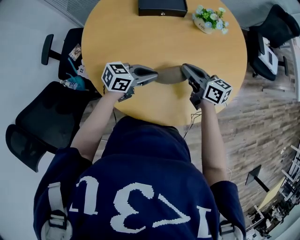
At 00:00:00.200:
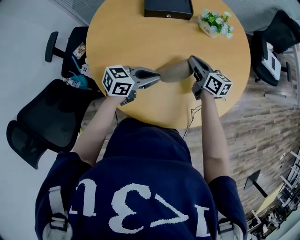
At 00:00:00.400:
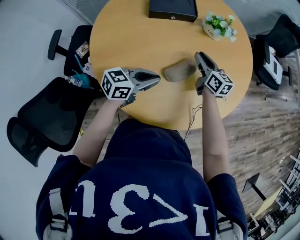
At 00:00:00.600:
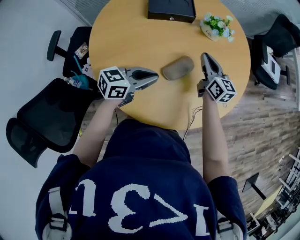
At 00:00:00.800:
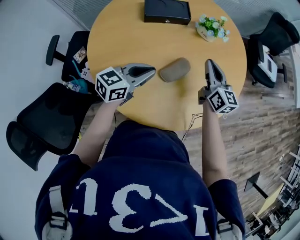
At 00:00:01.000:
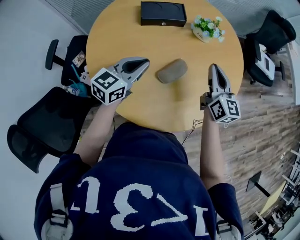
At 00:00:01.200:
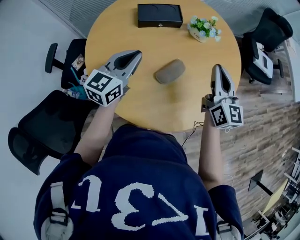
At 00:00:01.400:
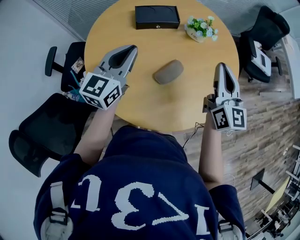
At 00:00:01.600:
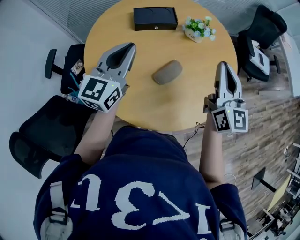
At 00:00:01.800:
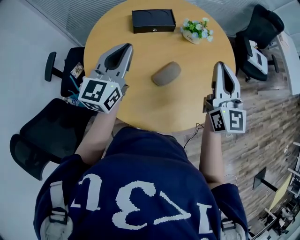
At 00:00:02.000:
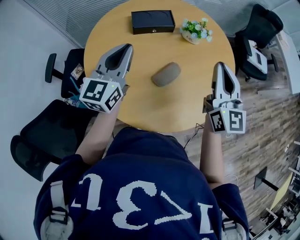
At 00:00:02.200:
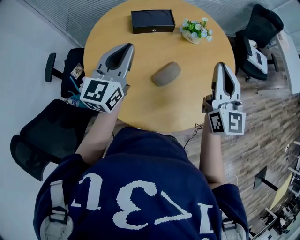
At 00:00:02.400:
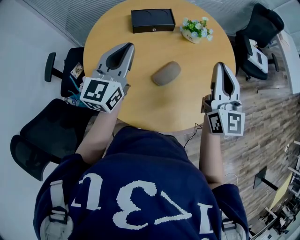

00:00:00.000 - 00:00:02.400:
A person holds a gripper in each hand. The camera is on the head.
00:00:00.000 - 00:00:01.200: Both grippers move upward, about 15 cm. The left gripper turns by some 40 degrees. Meanwhile the right gripper swivels about 50 degrees.
00:00:01.200 - 00:00:02.400: The two grippers go roughly 10 cm upward.

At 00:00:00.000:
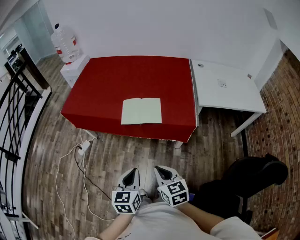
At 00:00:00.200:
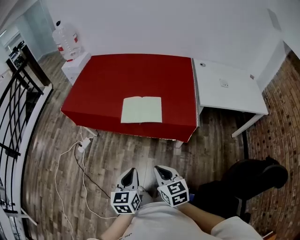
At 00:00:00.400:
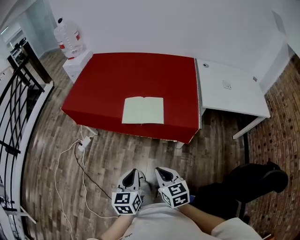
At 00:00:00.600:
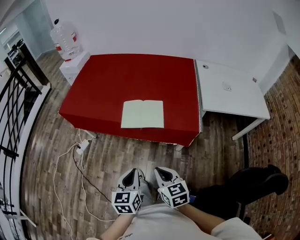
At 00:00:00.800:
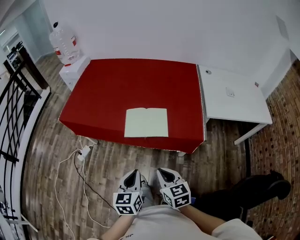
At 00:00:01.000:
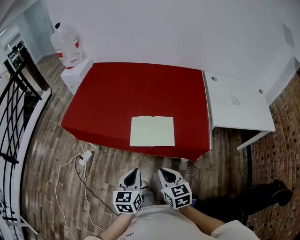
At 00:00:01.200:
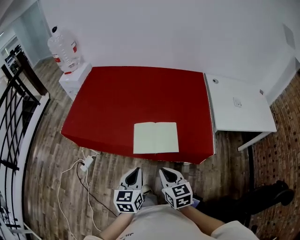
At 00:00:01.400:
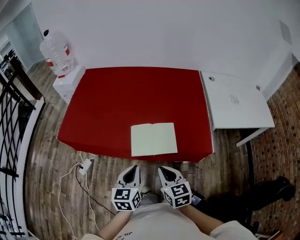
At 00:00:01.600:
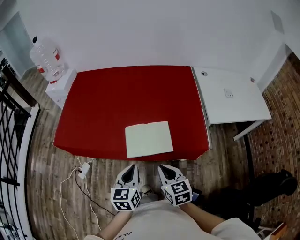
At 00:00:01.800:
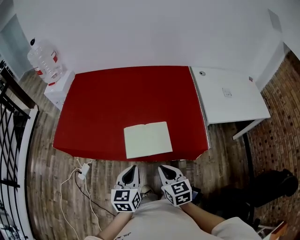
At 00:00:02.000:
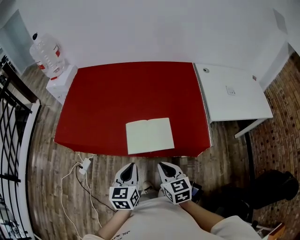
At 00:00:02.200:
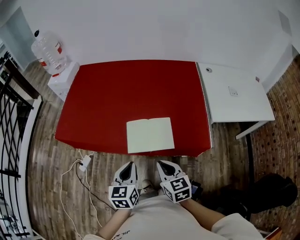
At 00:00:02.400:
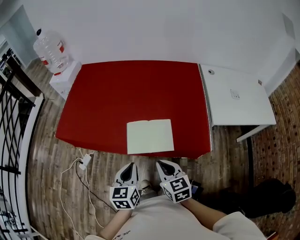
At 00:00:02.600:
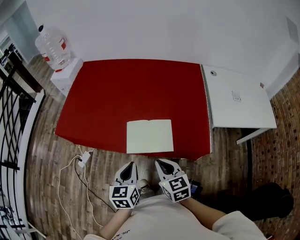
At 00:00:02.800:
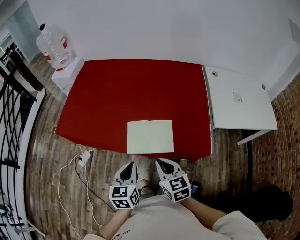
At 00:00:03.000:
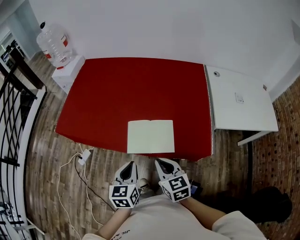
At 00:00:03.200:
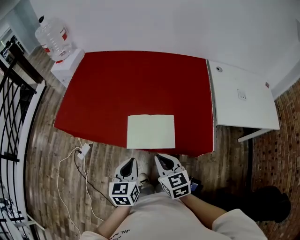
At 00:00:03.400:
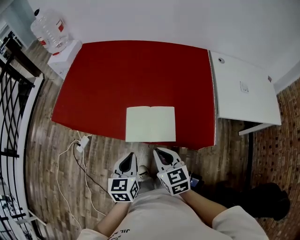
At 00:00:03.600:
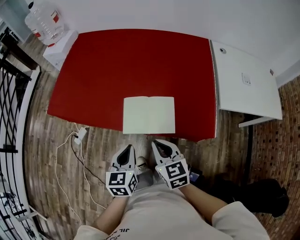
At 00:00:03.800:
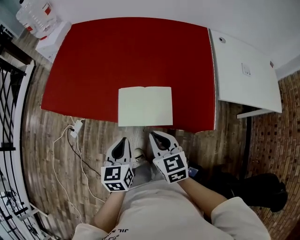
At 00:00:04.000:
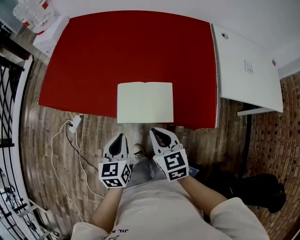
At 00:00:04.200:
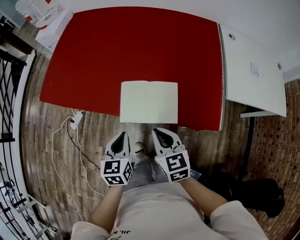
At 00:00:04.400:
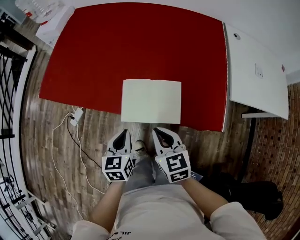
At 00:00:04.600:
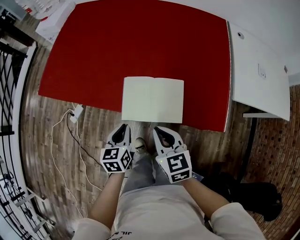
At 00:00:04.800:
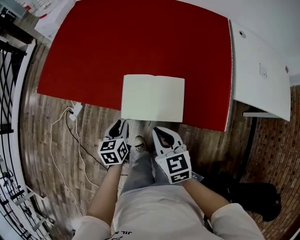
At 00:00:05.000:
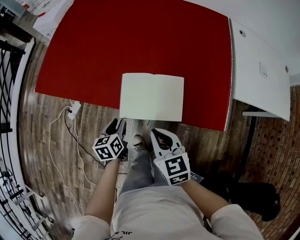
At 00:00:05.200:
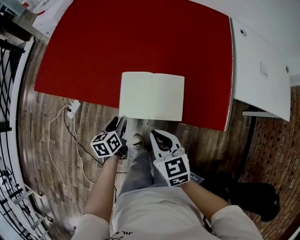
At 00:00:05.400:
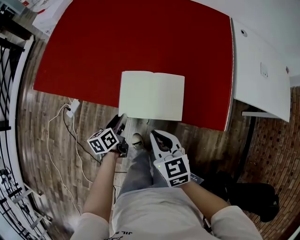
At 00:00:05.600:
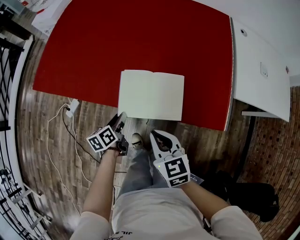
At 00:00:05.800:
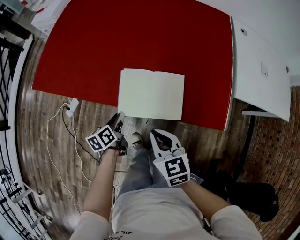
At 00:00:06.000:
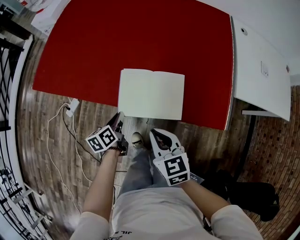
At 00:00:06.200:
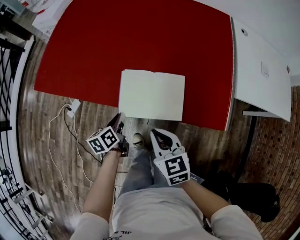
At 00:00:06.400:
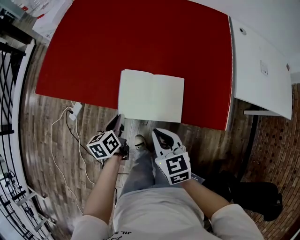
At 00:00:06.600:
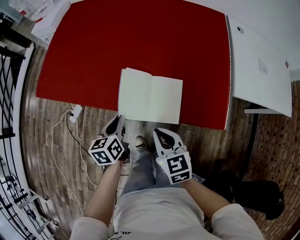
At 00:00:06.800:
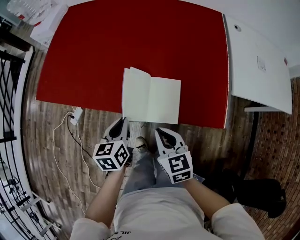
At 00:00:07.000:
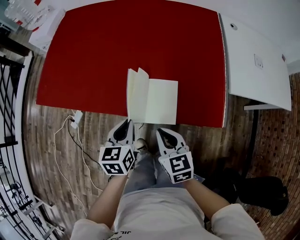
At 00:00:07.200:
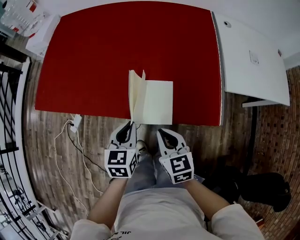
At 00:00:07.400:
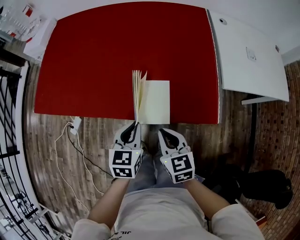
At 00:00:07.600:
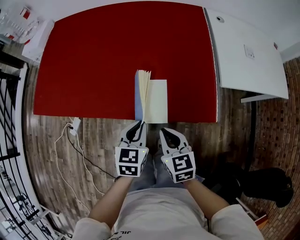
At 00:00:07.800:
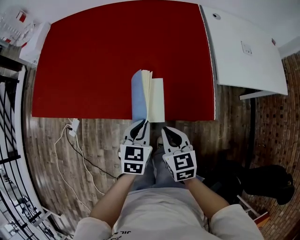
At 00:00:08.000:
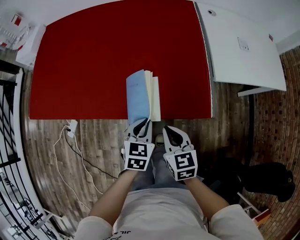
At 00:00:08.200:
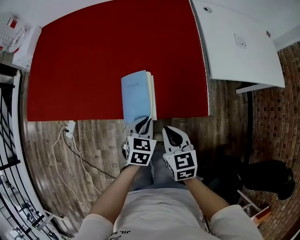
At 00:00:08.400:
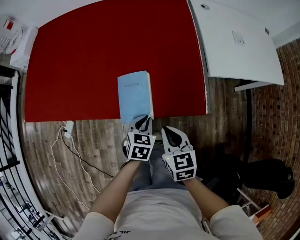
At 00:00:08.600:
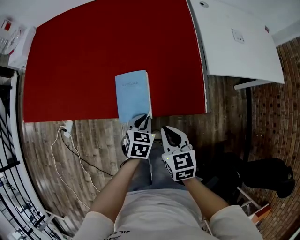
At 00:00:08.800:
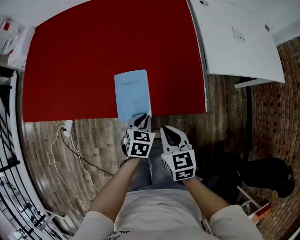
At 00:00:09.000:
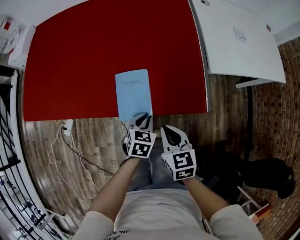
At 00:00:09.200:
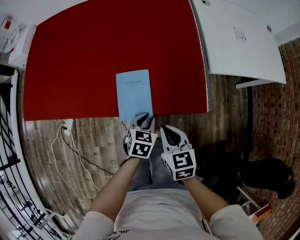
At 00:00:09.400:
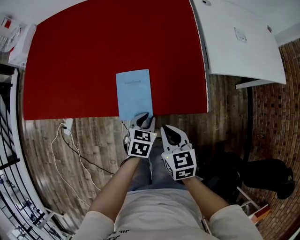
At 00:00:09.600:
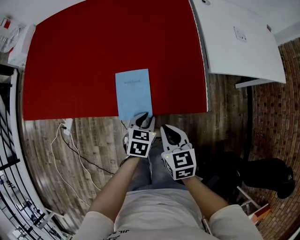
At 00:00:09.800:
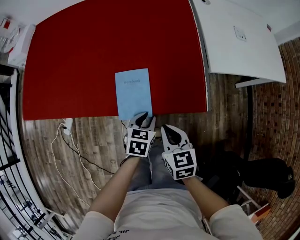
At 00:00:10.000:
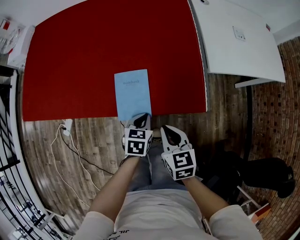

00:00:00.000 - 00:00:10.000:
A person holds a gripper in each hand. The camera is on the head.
00:00:00.000 - 00:00:01.400: The grippers both shift forward by some 25 cm.
00:00:01.400 - 00:00:02.800: The right gripper shifts by approximately 5 cm.
00:00:02.800 - 00:00:04.200: The two grippers go some 10 cm downward.
00:00:04.200 - 00:00:05.800: The left gripper moves downward and forward, about 15 cm, and turns by some 40 degrees.
00:00:05.800 - 00:00:07.200: The left gripper shifts approximately 20 cm upward and to the right, and rotates around the line of its fingers by approximately 40 degrees, clockwise from behind. The right gripper travels to the right by about 5 cm.
00:00:07.200 - 00:00:08.600: The right gripper moves to the right, approximately 10 cm. Meanwhile the left gripper heads to the right and downward, covering about 20 cm, and changes its angle by about 20 degrees.
00:00:08.600 - 00:00:10.000: There are only small adjustments of the grippers.

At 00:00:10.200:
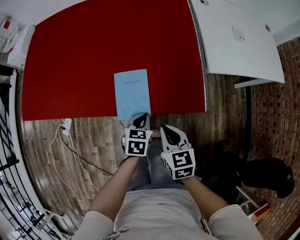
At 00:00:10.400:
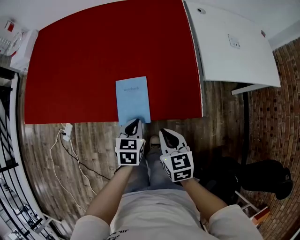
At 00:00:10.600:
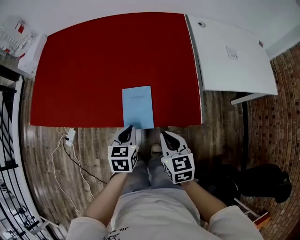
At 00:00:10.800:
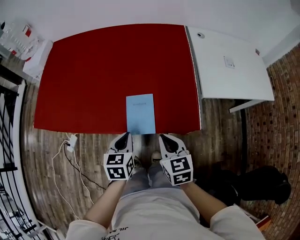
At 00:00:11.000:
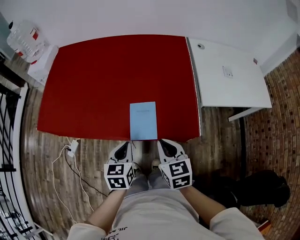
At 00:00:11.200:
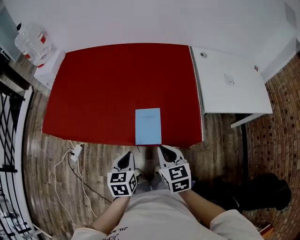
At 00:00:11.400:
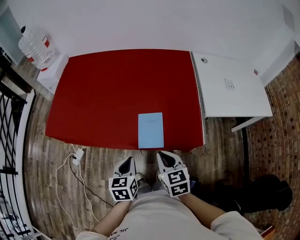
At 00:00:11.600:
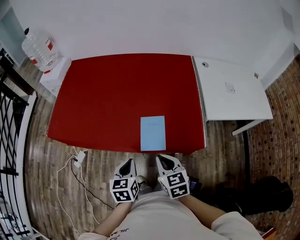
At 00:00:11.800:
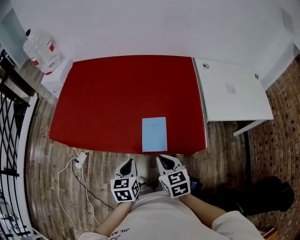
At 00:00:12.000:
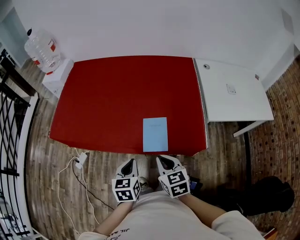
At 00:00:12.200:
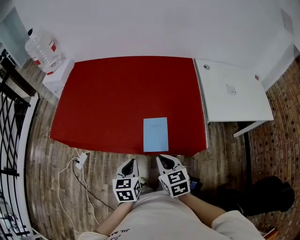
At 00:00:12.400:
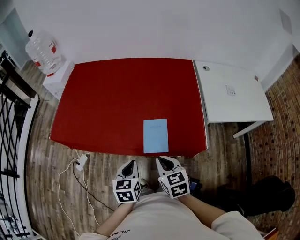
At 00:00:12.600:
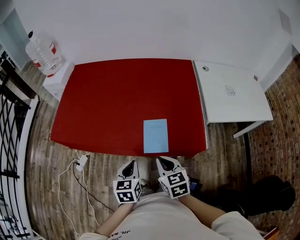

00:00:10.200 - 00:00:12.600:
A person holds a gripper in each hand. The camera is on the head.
00:00:10.200 - 00:00:11.400: The left gripper is displaced upward and to the left by approximately 25 cm, and turns by some 20 degrees. The right gripper goes roughly 15 cm upward and to the left.
00:00:11.400 - 00:00:12.600: The grippers move only a little.

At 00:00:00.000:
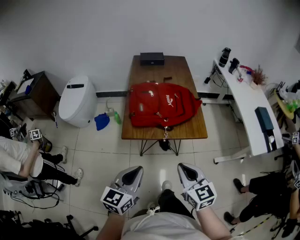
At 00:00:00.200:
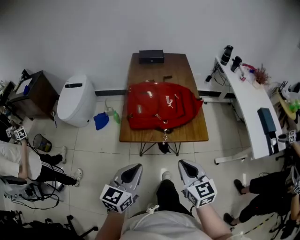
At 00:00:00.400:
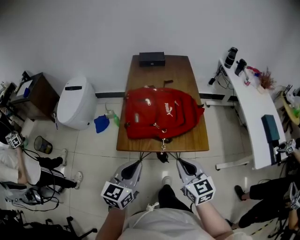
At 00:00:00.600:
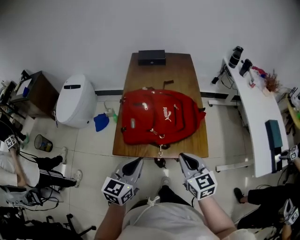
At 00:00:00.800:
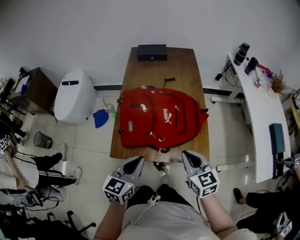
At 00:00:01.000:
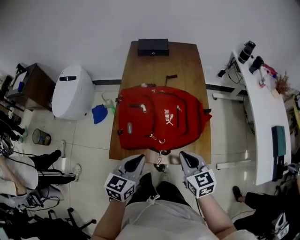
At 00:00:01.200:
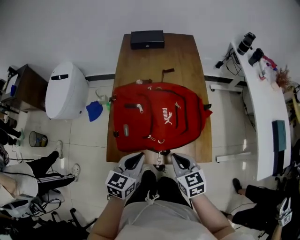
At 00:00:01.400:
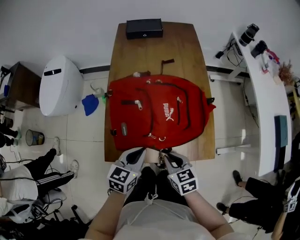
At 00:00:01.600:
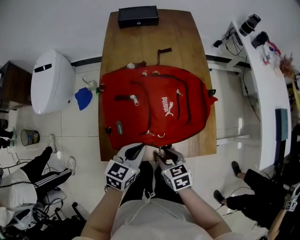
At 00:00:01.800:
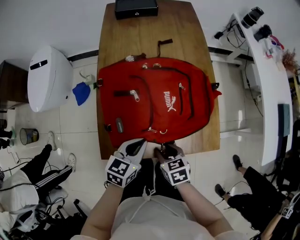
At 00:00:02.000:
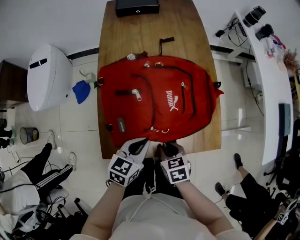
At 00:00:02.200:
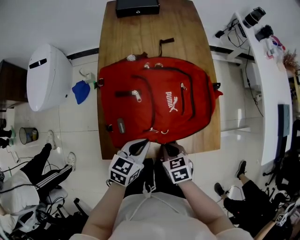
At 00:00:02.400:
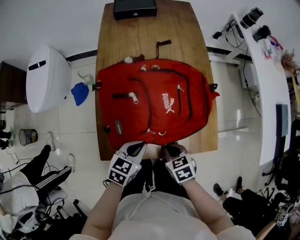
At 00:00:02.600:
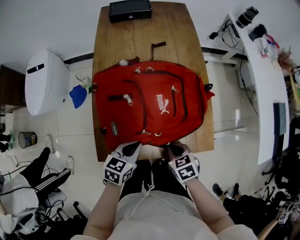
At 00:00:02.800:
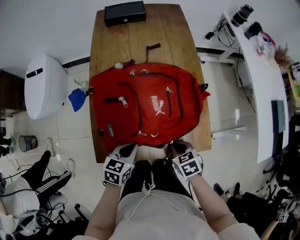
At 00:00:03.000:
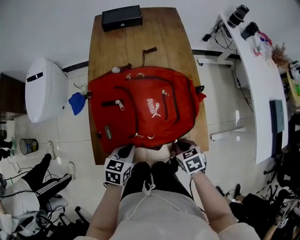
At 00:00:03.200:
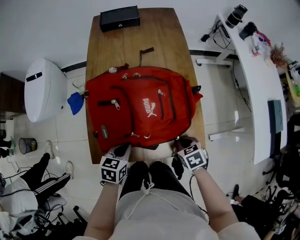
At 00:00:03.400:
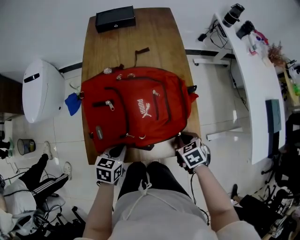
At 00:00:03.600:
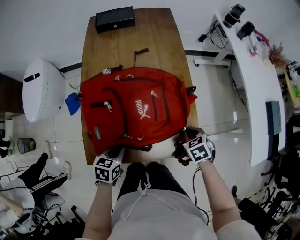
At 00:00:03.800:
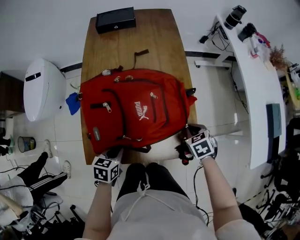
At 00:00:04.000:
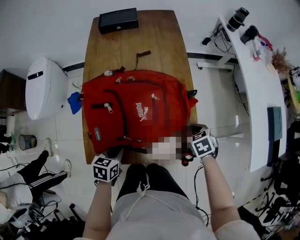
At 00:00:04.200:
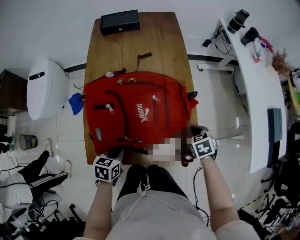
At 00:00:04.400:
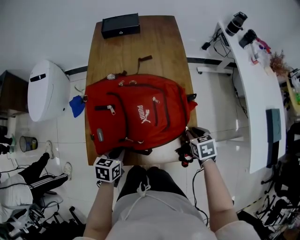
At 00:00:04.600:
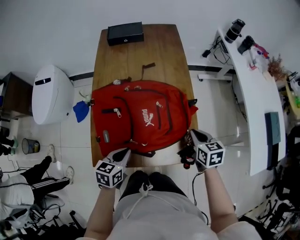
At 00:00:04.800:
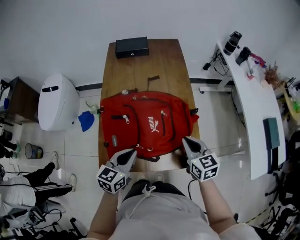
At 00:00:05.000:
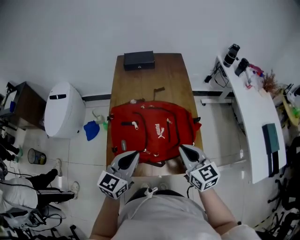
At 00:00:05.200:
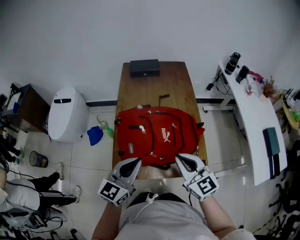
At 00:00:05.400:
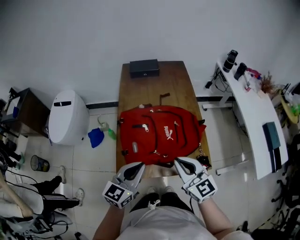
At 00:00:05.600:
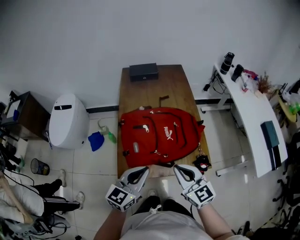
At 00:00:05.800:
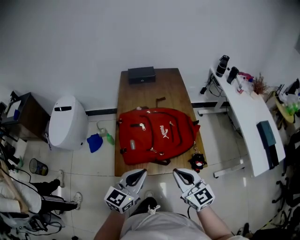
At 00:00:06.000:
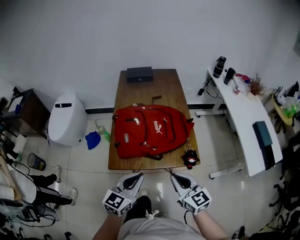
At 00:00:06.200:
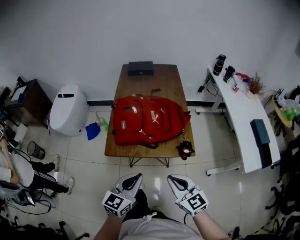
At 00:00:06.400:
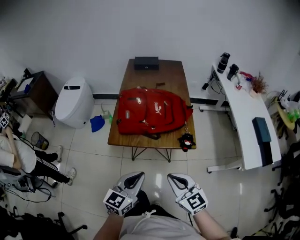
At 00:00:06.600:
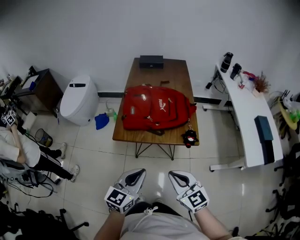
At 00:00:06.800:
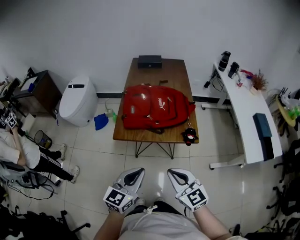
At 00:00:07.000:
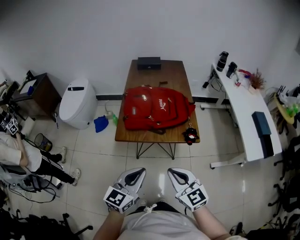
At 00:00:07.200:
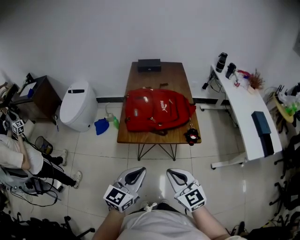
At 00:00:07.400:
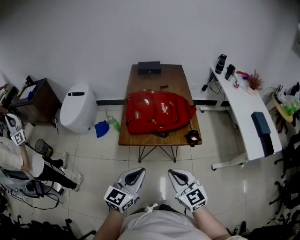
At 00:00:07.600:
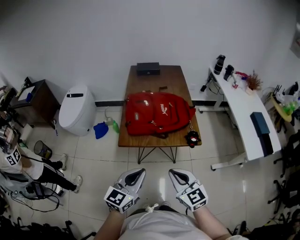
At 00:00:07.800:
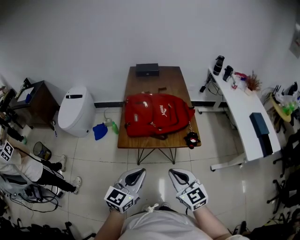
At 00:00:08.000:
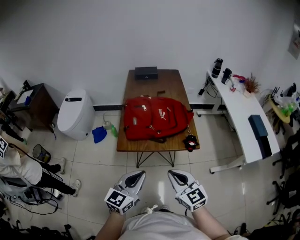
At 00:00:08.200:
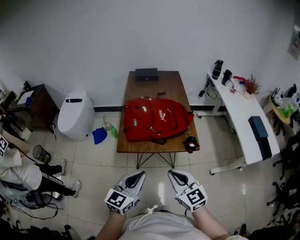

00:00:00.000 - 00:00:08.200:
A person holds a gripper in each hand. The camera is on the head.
00:00:00.000 - 00:00:01.600: Both grippers move forward and downward, some 35 cm. The left gripper changes its angle by some 20 degrees. Meanwhile the right gripper tilts its fingers some 30 degrees downward, and opens its fingers.
00:00:01.600 - 00:00:03.200: The right gripper shifts about 15 cm to the right, and closes; the left gripper shifts roughly 5 cm downward.
00:00:03.200 - 00:00:05.000: Both grippers travel together upward, approximately 20 cm. The right gripper tilts its fingers about 50 degrees upward, and opens, then closes once more, while the left gripper angles its fingers upward, by some 40 degrees.
00:00:05.000 - 00:00:06.600: The two grippers go some 35 cm backward.
00:00:06.600 - 00:00:08.200: Both grippers travel together to the left, some 5 cm.
